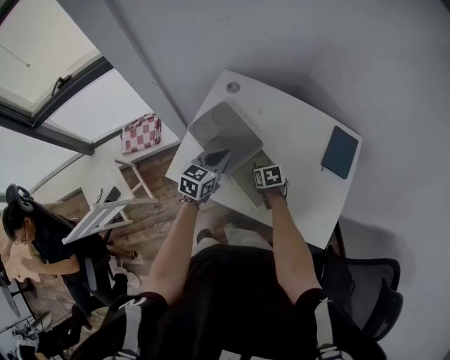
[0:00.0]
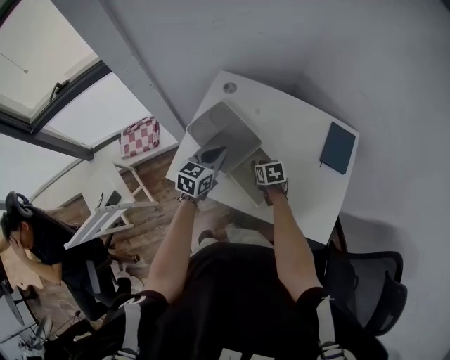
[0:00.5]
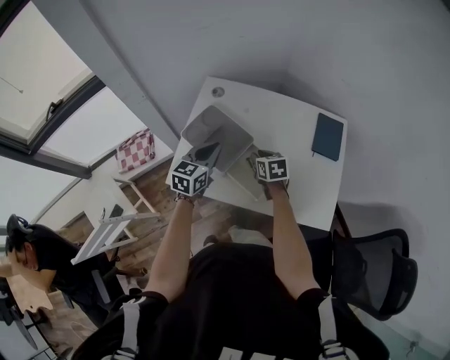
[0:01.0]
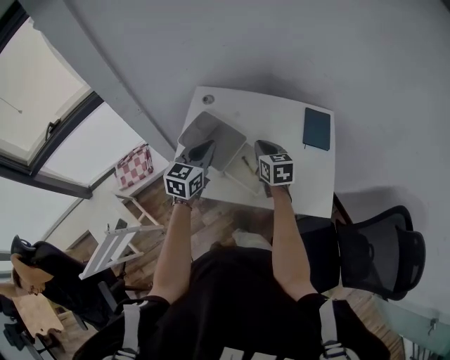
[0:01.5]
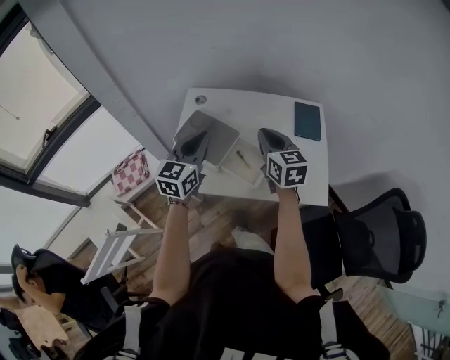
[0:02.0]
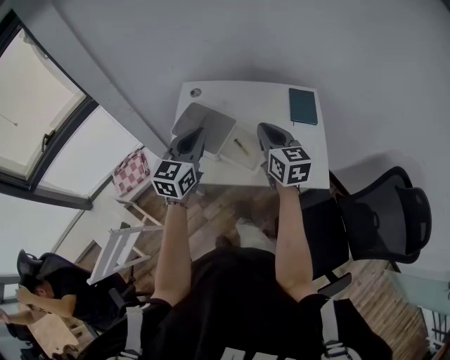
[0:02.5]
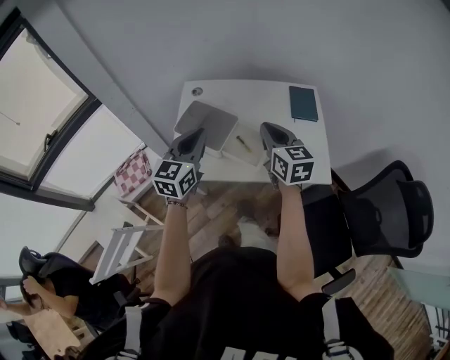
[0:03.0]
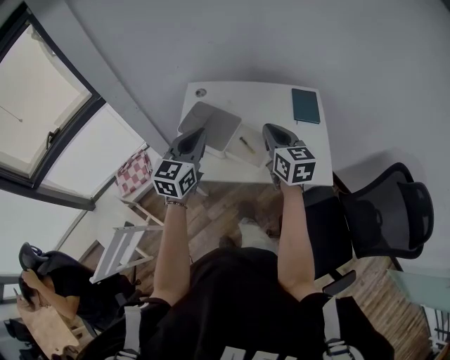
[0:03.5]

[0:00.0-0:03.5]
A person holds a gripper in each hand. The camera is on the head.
0:00.0 to 0:02.0: The left gripper is displaced upward by some 20 cm. The right gripper is displaced upward by roughly 35 cm, and points its fingers roughly 40 degrees further upward.
0:02.0 to 0:03.5: The grippers both shift backward by about 5 cm.
